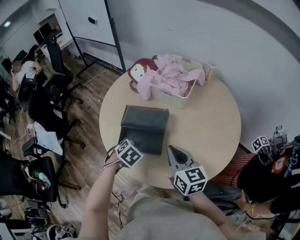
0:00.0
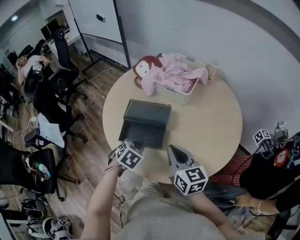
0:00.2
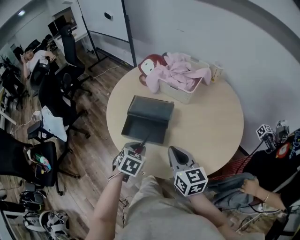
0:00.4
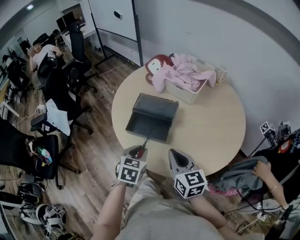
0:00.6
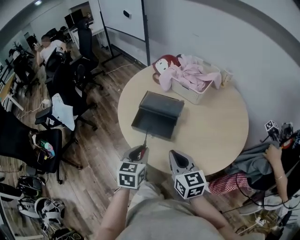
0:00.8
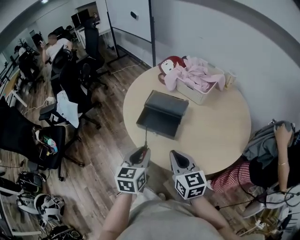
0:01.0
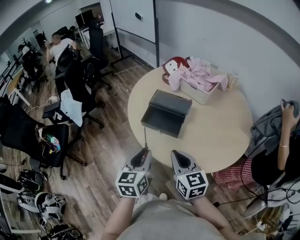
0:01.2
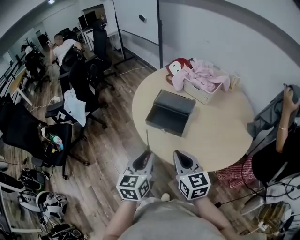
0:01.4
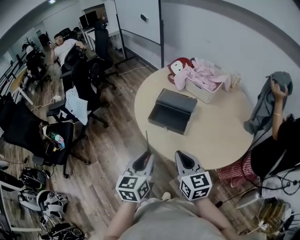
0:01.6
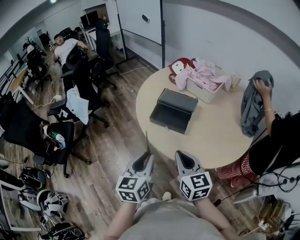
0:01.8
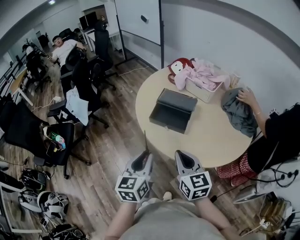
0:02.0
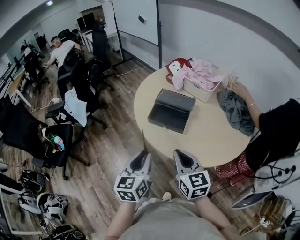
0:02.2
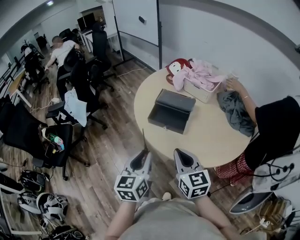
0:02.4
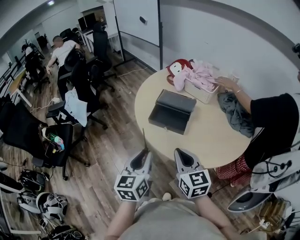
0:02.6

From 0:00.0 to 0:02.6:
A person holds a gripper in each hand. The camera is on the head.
From 0:00.0 to 0:01.2: The left gripper is displaced backward and upward by some 25 cm, and points its fingers approximately 50 degrees further upward; the right gripper is displaced backward and to the left by some 15 cm.
From 0:01.2 to 0:02.6: The left gripper changes place by approximately 5 cm.

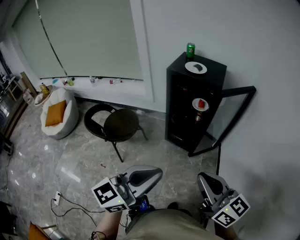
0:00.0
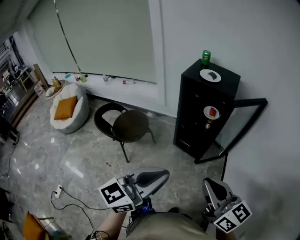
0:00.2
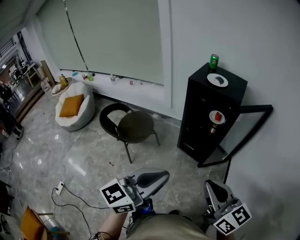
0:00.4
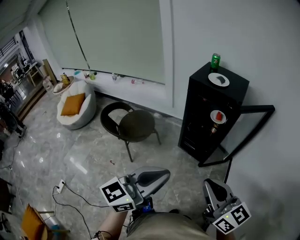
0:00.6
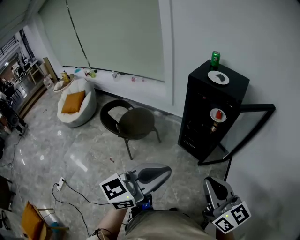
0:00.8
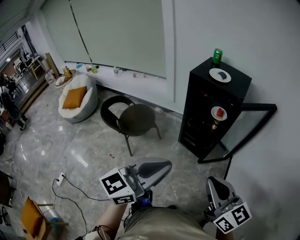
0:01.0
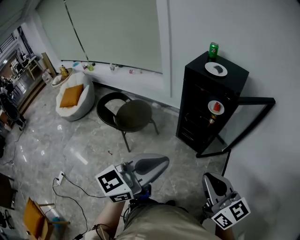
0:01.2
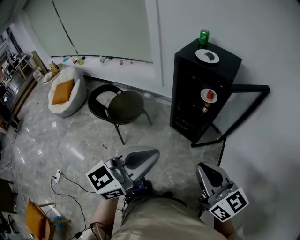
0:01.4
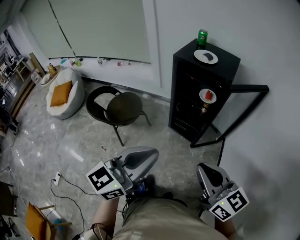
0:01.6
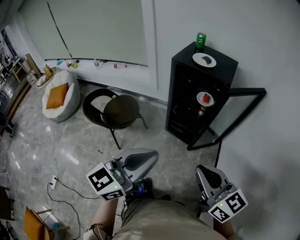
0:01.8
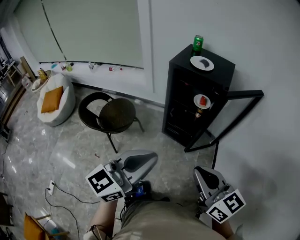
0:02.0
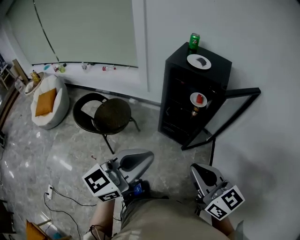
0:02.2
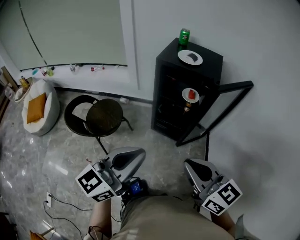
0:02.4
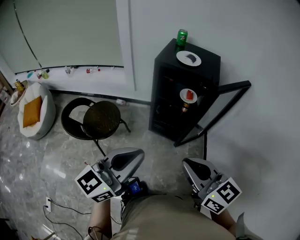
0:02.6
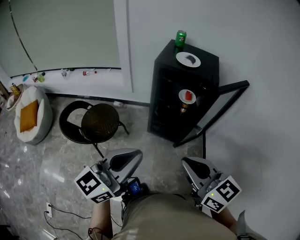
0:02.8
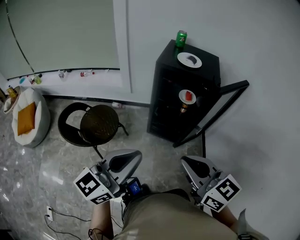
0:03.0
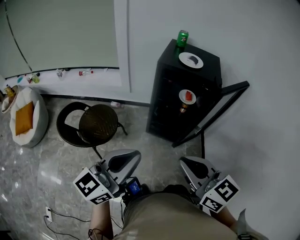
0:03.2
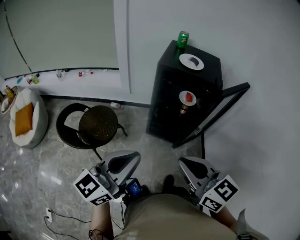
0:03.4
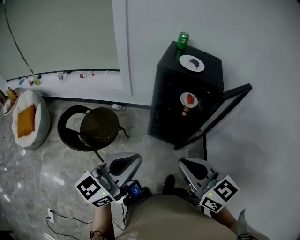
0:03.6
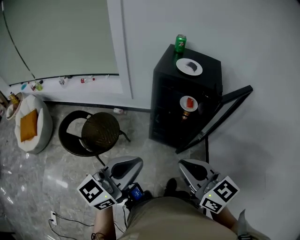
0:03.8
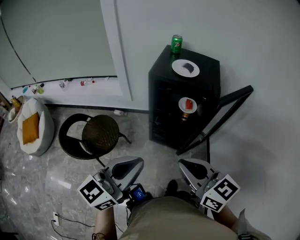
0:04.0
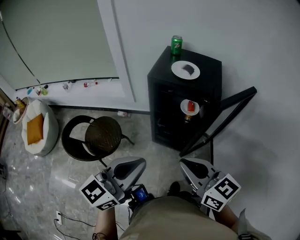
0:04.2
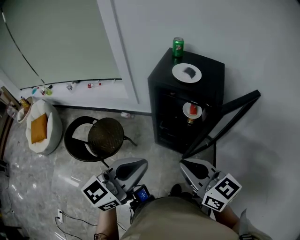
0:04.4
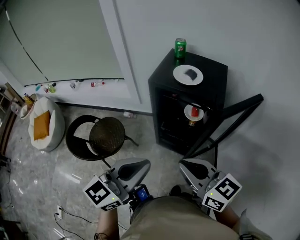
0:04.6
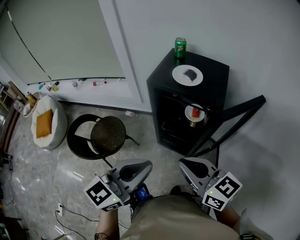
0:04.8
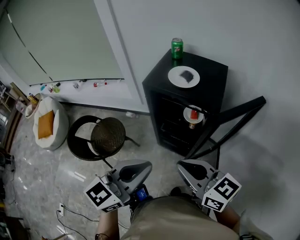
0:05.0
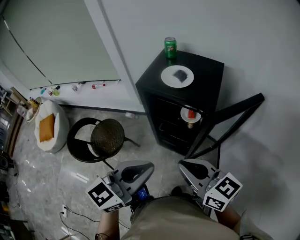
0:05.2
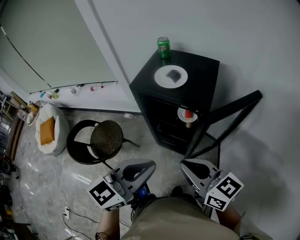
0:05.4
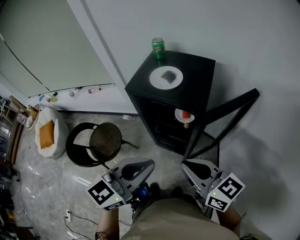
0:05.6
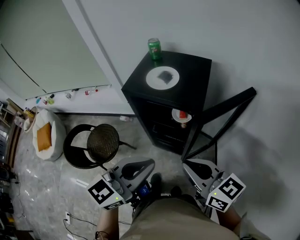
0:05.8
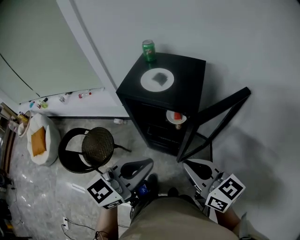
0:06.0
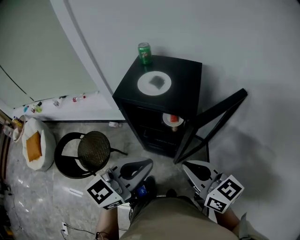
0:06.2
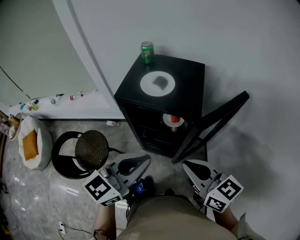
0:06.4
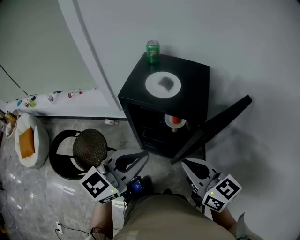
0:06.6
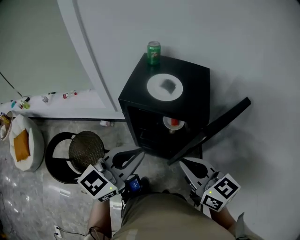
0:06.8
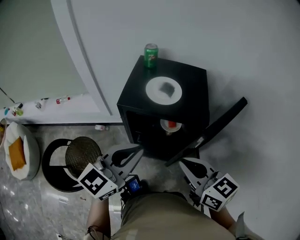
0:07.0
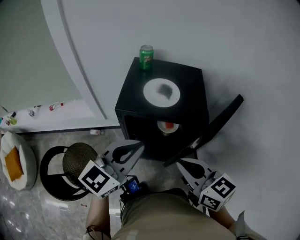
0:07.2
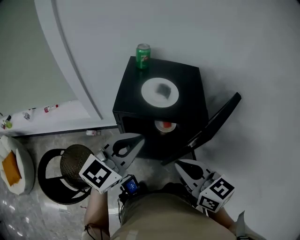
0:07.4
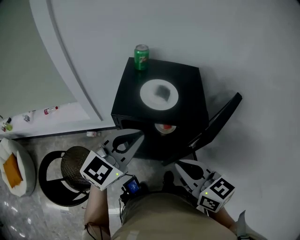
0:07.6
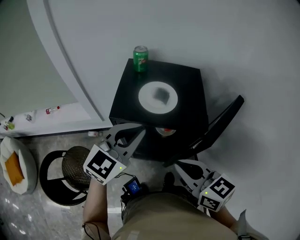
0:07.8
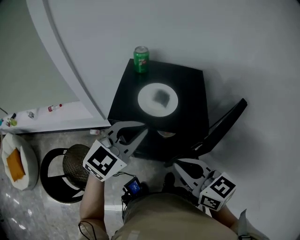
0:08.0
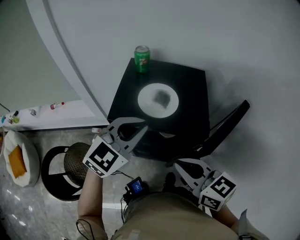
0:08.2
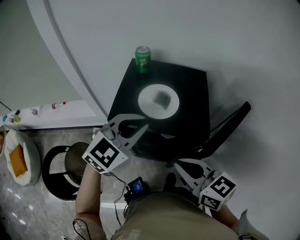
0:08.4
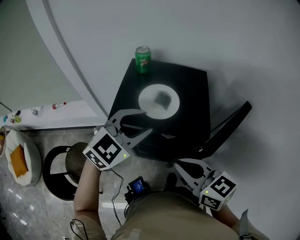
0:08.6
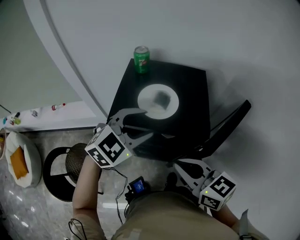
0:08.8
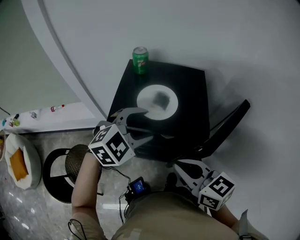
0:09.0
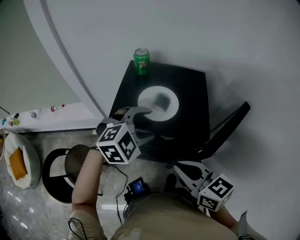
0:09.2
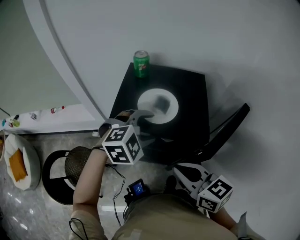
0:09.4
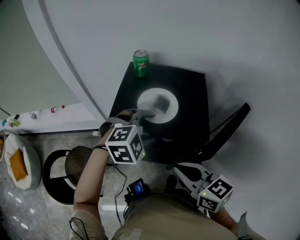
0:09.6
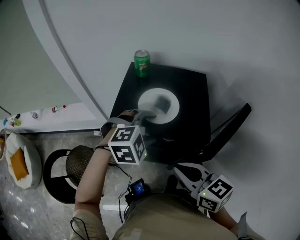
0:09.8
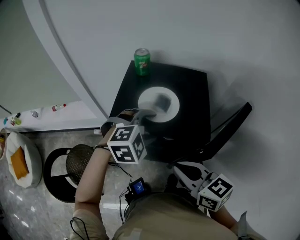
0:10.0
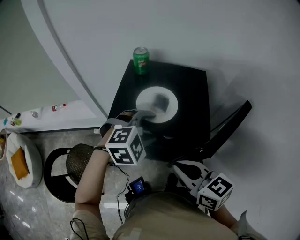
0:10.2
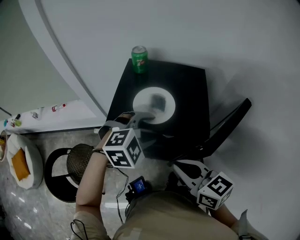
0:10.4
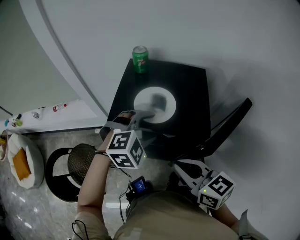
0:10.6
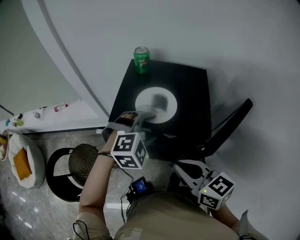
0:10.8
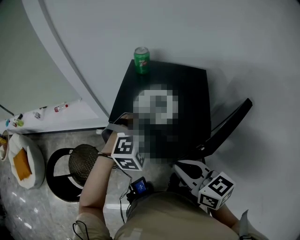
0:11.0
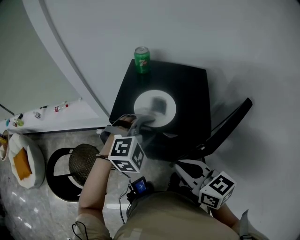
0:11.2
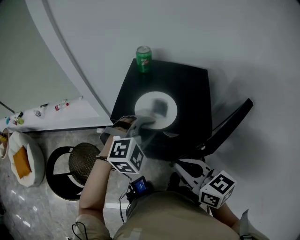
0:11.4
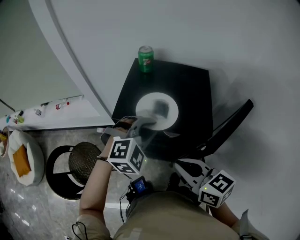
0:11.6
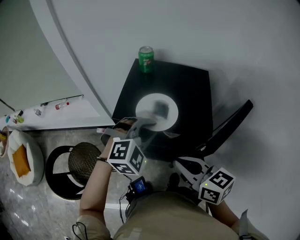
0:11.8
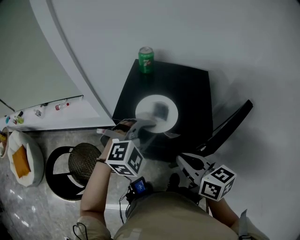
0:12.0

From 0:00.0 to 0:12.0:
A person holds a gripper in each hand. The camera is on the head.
From 0:00.0 to 0:01.6: The left gripper travels forward by some 5 cm. Meanwhile the right gripper changes place by some 5 cm.
From 0:01.6 to 0:03.0: The two grippers go about 15 cm to the left and forward.
From 0:03.0 to 0:04.4: Both grippers travel together forward and to the right, about 15 cm.
From 0:04.4 to 0:06.0: Both grippers travel together to the right and forward, roughly 15 cm.
From 0:06.0 to 0:07.6: The left gripper is displaced forward and to the left by some 20 cm. The right gripper heads to the left and forward, covering roughly 15 cm.
From 0:07.6 to 0:09.0: The right gripper moves roughly 5 cm. Meanwhile the left gripper travels forward and to the right by some 10 cm, rotates about 40 degrees, and opens up.
From 0:09.0 to 0:10.4: The grippers stay close to where they were, moving slightly.
From 0:10.4 to 0:12.0: The left gripper closes up.

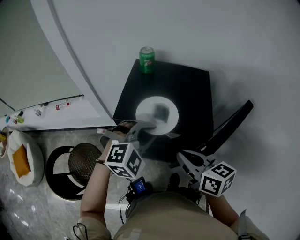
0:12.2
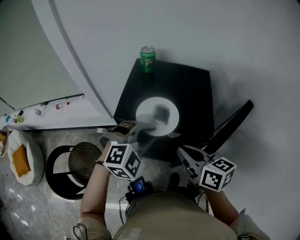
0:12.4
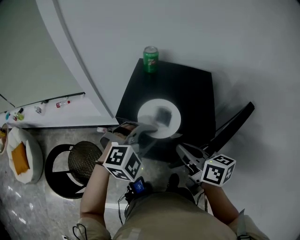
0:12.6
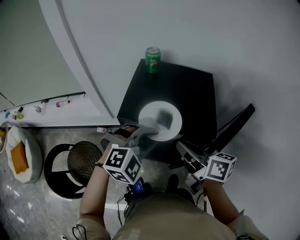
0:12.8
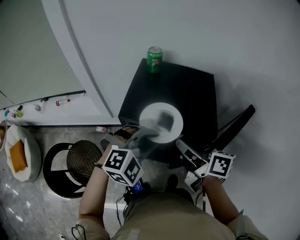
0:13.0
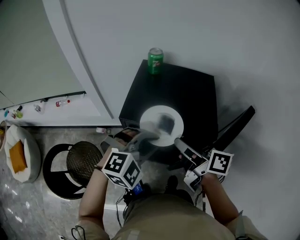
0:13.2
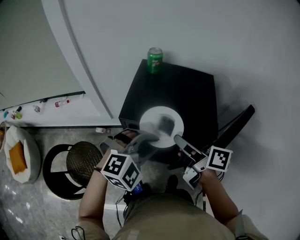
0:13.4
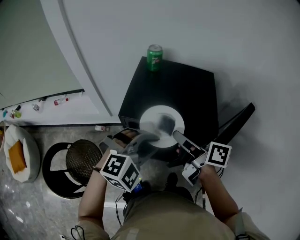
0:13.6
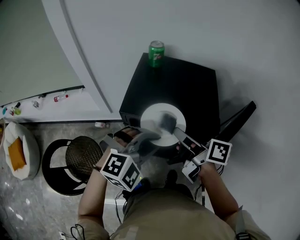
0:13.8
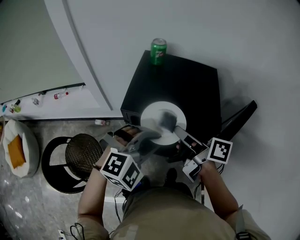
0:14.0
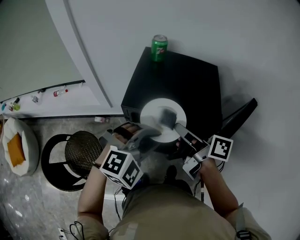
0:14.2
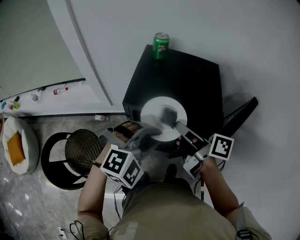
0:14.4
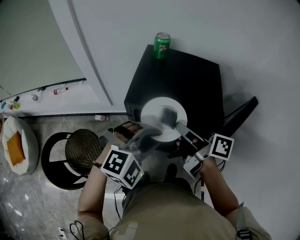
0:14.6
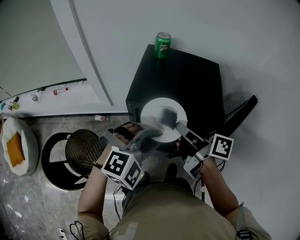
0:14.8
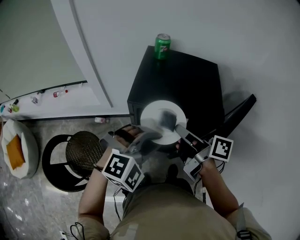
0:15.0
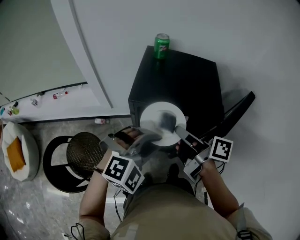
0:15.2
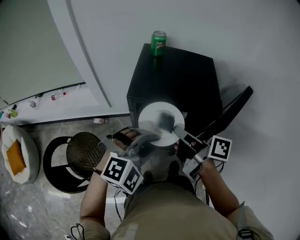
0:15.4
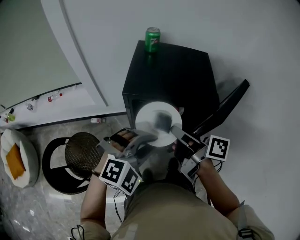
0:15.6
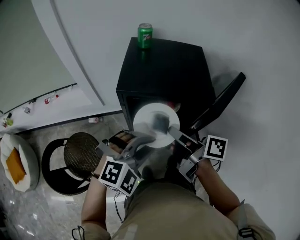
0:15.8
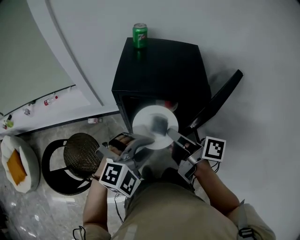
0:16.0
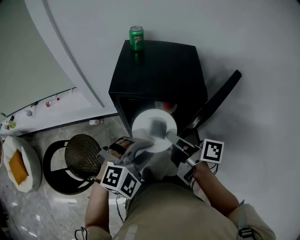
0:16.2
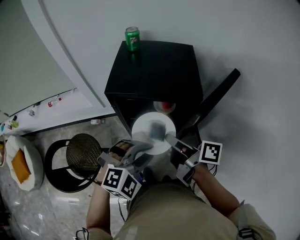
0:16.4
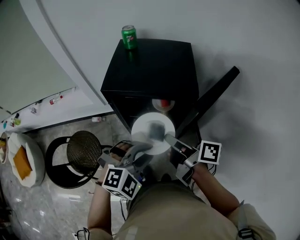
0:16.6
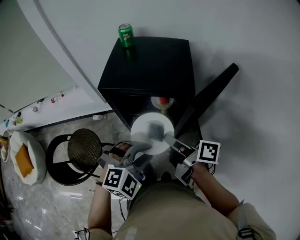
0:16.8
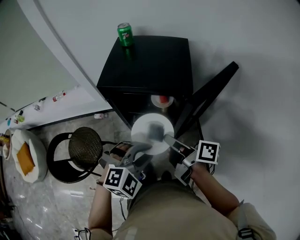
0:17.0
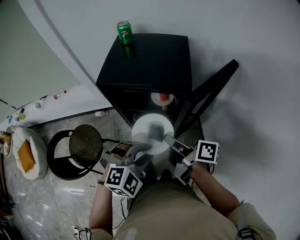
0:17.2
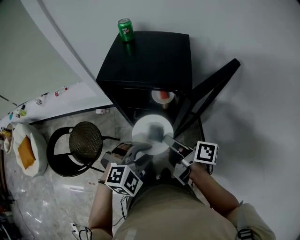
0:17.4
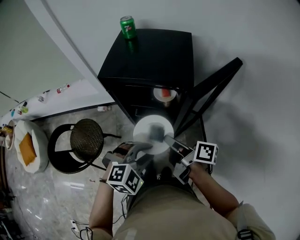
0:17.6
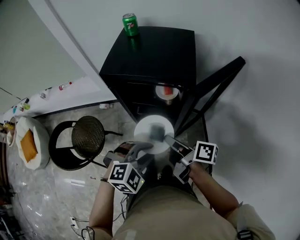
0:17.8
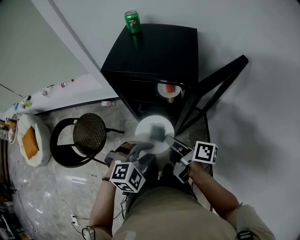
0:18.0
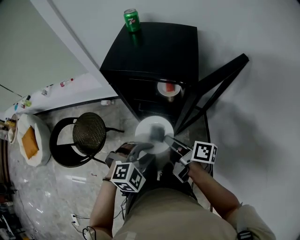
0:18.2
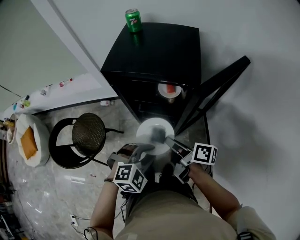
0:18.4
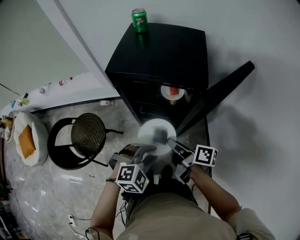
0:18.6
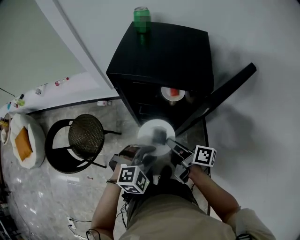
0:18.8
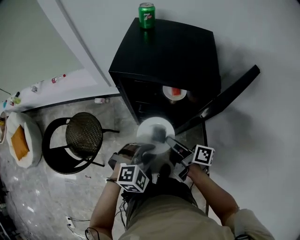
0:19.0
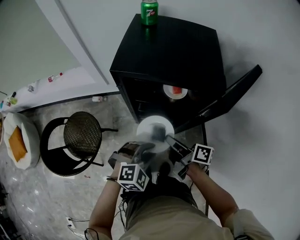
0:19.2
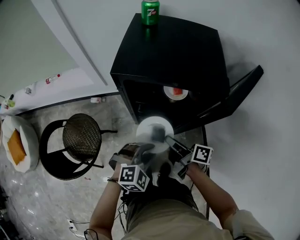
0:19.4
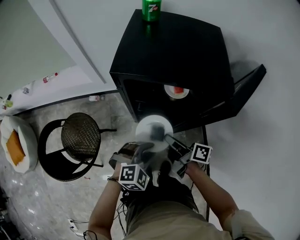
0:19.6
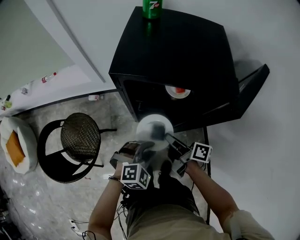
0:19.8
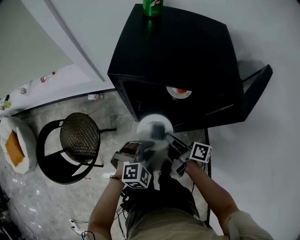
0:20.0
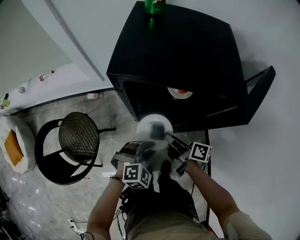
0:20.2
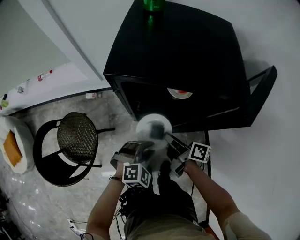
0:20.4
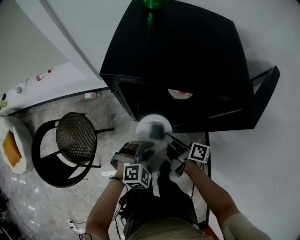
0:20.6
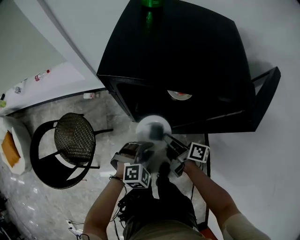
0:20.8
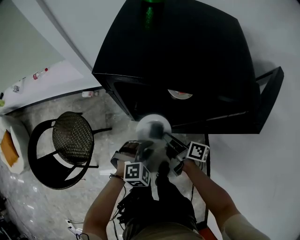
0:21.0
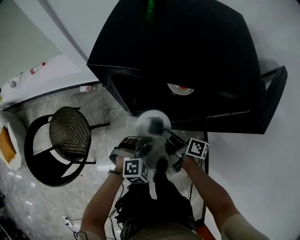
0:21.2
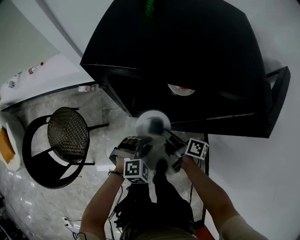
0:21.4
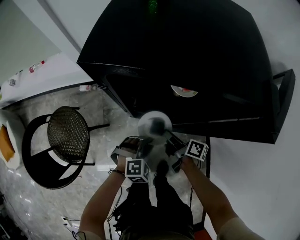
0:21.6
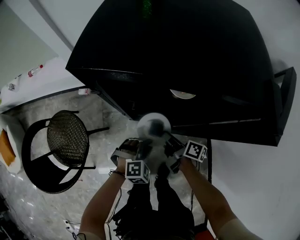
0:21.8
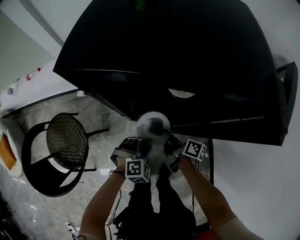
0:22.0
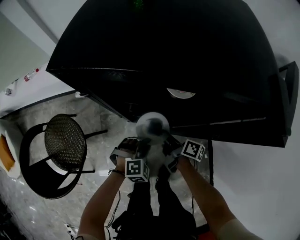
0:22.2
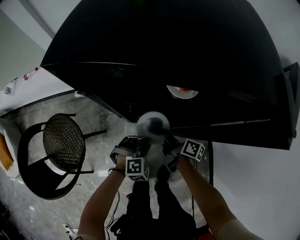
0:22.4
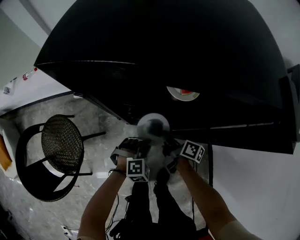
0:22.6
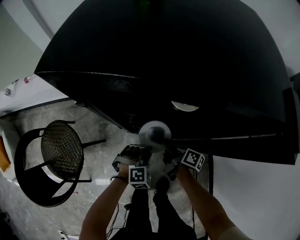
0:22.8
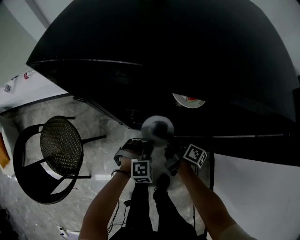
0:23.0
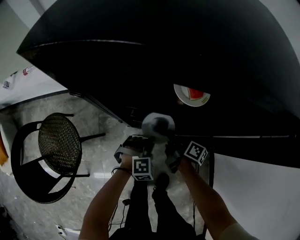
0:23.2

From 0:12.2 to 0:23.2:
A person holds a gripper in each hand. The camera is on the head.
From 0:12.2 to 0:13.8: The right gripper moves forward, about 5 cm, and turns by roughly 30 degrees. Meanwhile the left gripper heads backward, covering approximately 5 cm.
From 0:13.8 to 0:15.4: Both grippers travel together backward, about 5 cm.
From 0:15.4 to 0:17.0: Both grippers travel together to the right, backward and downward, some 15 cm.
From 0:17.0 to 0:18.4: The two grippers go some 10 cm downward.
From 0:18.4 to 0:20.0: The grippers both shift downward, forward and to the left by approximately 15 cm.
From 0:20.0 to 0:21.6: Both grippers travel together downward, some 15 cm.
From 0:21.6 to 0:23.2: Both grippers move downward and forward, approximately 15 cm.
